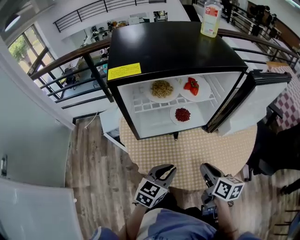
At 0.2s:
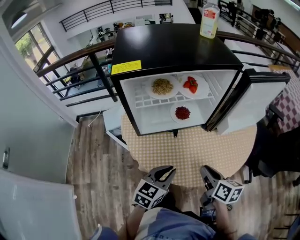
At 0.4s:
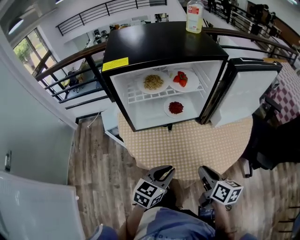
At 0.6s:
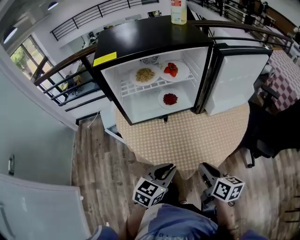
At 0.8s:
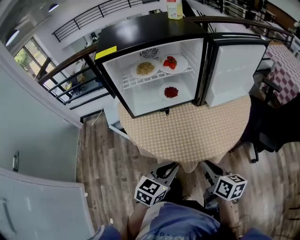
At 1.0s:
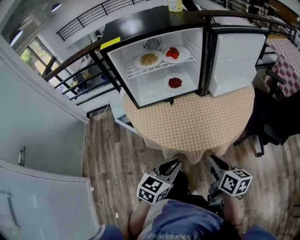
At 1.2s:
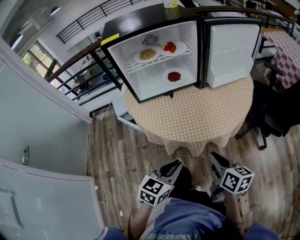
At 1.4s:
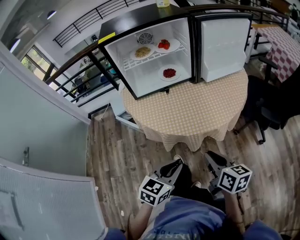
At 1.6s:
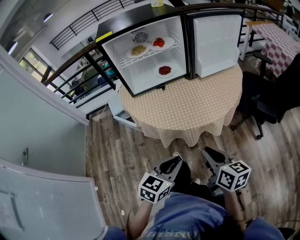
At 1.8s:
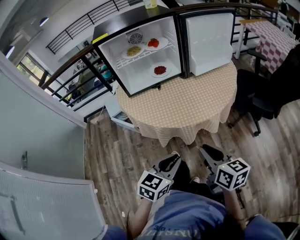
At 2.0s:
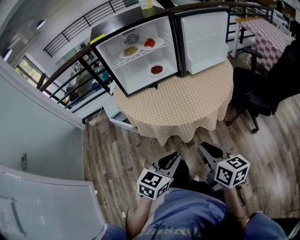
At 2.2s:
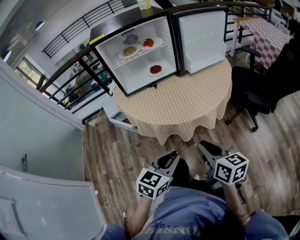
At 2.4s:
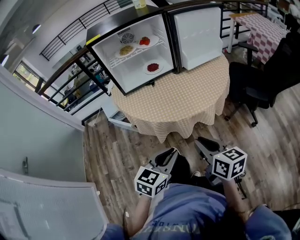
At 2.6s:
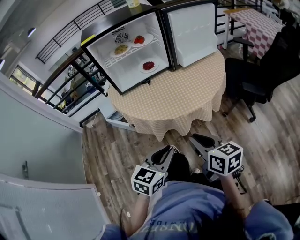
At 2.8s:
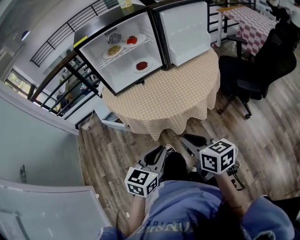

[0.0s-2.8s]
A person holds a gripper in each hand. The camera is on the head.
0.0s to 1.4s: Both grippers travel together backward, about 25 cm.
1.4s to 2.8s: The right gripper travels backward by approximately 5 cm, while the left gripper moves some 5 cm.

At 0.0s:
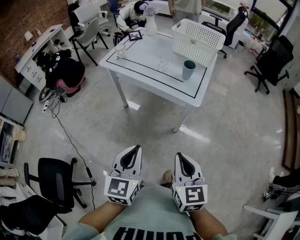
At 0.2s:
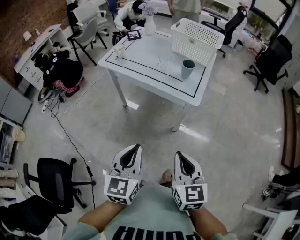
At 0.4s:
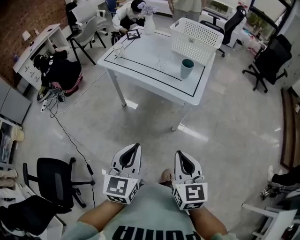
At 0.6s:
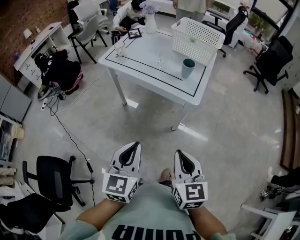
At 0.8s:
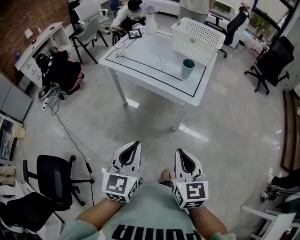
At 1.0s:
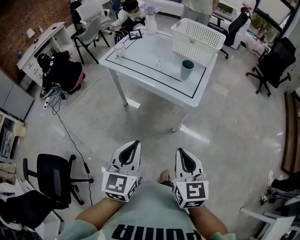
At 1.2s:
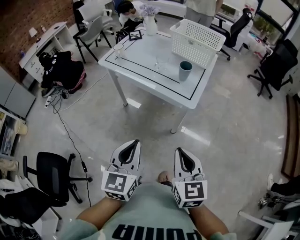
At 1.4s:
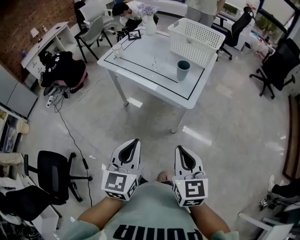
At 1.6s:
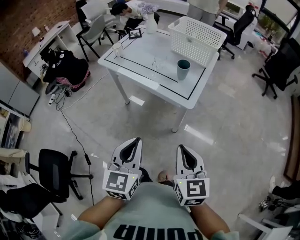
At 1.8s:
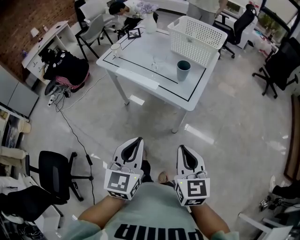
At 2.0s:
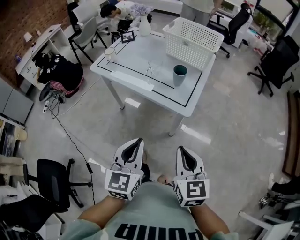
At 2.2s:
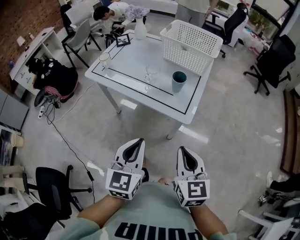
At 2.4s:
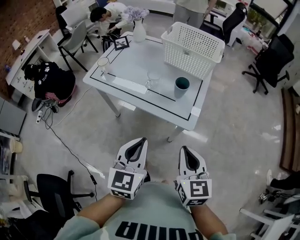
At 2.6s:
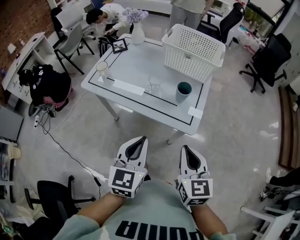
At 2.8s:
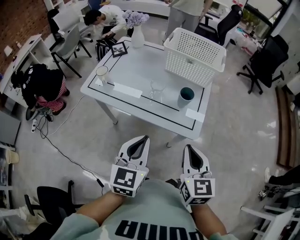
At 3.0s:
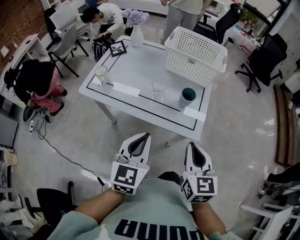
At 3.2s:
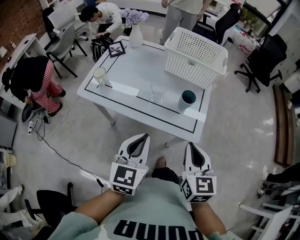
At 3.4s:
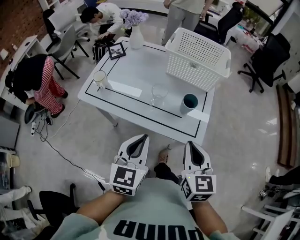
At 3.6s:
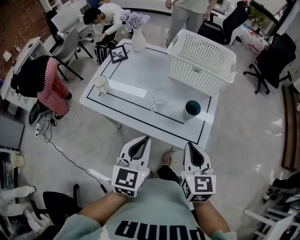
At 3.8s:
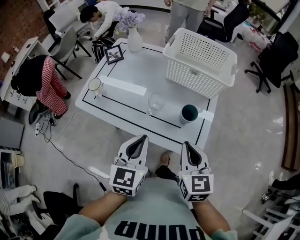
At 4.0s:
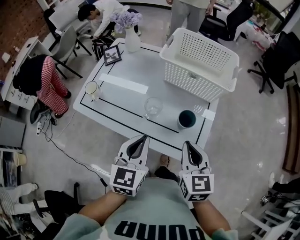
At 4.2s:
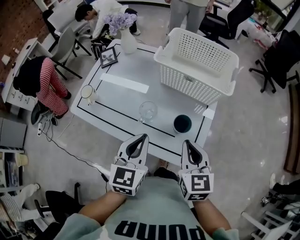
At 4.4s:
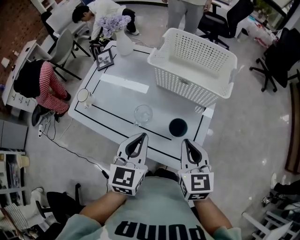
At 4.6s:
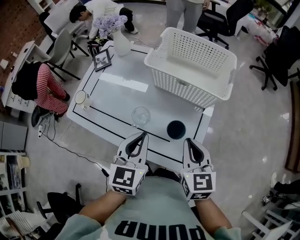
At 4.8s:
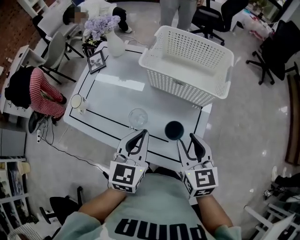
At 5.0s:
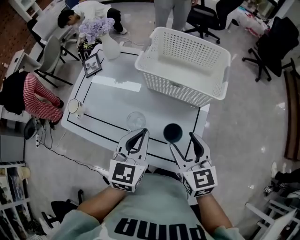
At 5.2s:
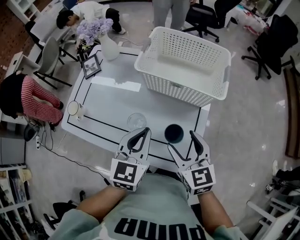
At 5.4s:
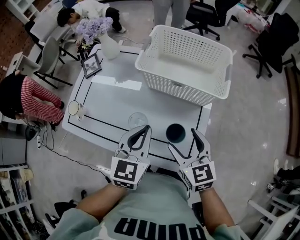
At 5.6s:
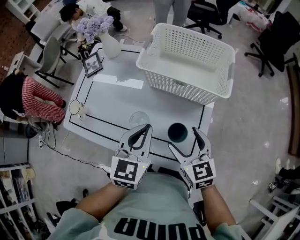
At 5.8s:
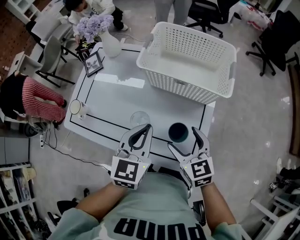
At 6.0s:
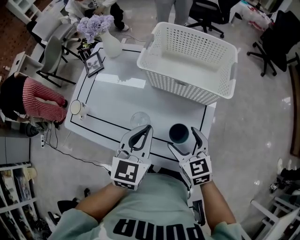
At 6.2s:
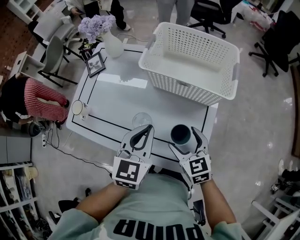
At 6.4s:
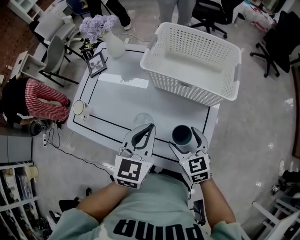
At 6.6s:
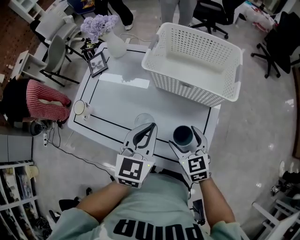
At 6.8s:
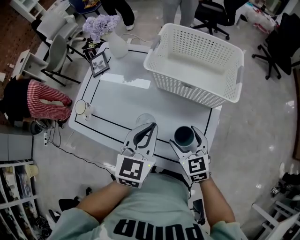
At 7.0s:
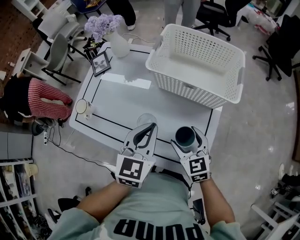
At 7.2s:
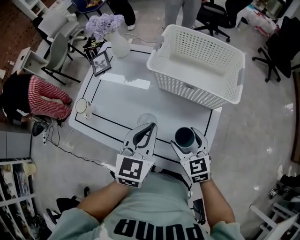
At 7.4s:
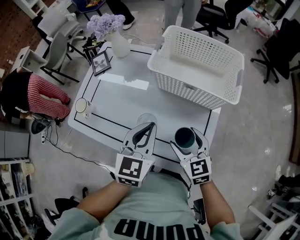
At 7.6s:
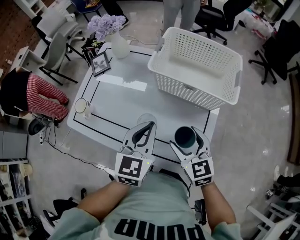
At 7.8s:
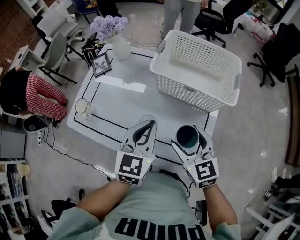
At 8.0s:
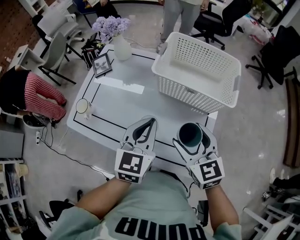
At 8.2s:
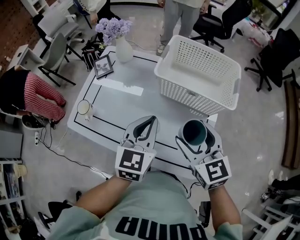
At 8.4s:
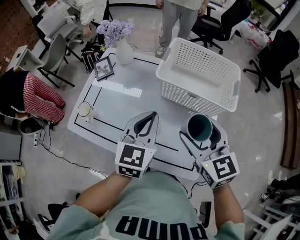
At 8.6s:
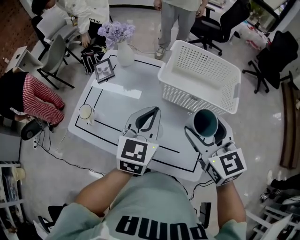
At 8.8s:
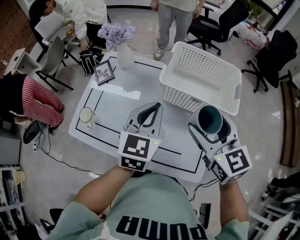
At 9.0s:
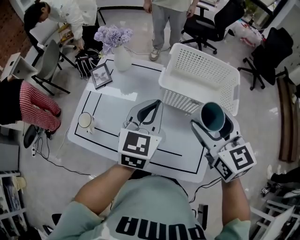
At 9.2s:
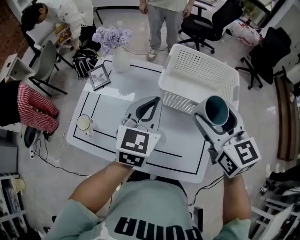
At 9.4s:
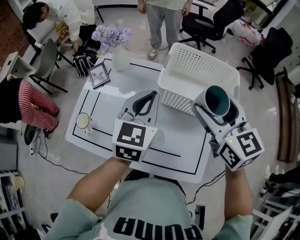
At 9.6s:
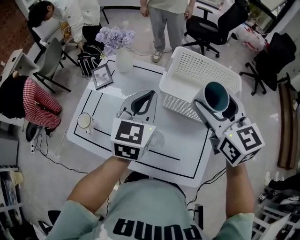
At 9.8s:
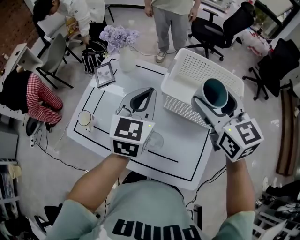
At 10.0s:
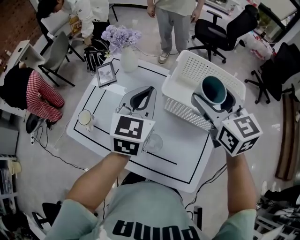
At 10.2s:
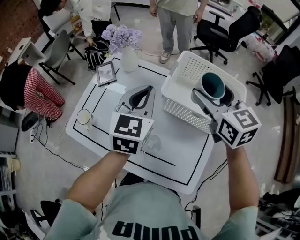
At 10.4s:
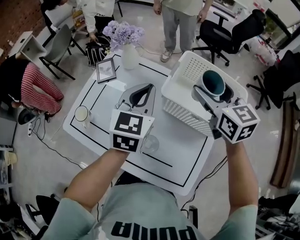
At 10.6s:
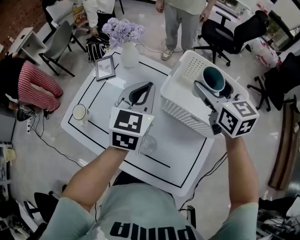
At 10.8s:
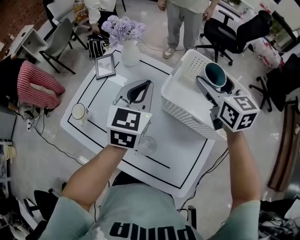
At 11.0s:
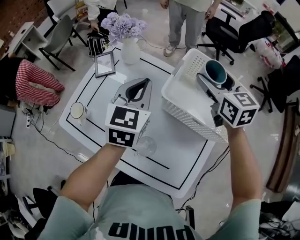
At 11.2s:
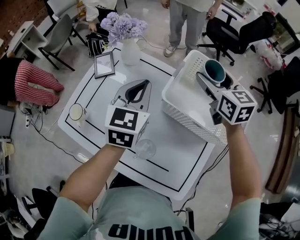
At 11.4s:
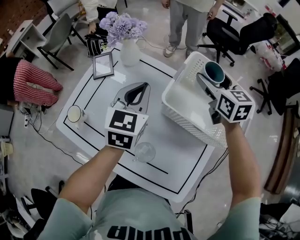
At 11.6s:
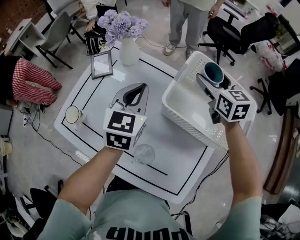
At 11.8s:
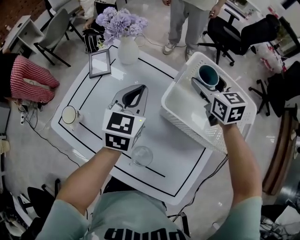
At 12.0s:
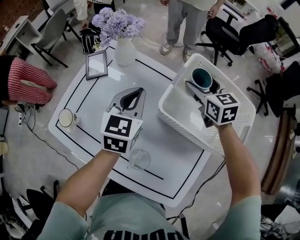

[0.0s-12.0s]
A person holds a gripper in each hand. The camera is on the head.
0.0s to 1.6s: The left gripper moves to the right, roughly 10 cm, while the right gripper heads to the right and forward, covering roughly 10 cm.
1.6s to 3.0s: Both grippers move forward, about 25 cm.
3.0s to 4.4s: The two grippers go some 20 cm forward.
4.4s to 6.0s: The left gripper heads forward, covering some 5 cm. Meanwhile the right gripper goes roughly 10 cm downward and forward, and opens.
6.0s to 7.6s: There are only small adjustments of the grippers.
7.6s to 9.0s: The right gripper travels upward and forward by some 20 cm, while the left gripper shifts roughly 15 cm forward and upward.
9.0s to 10.4s: The right gripper moves forward, roughly 15 cm. Meanwhile the left gripper shifts some 10 cm forward.
10.4s to 12.0s: The right gripper is displaced downward and forward by roughly 20 cm; the left gripper heads downward and forward, covering about 10 cm.

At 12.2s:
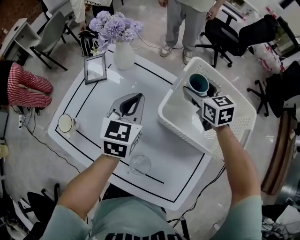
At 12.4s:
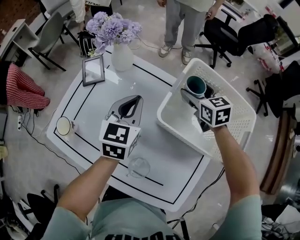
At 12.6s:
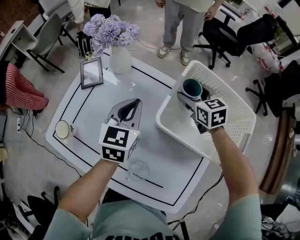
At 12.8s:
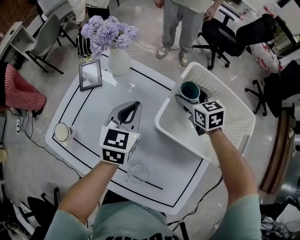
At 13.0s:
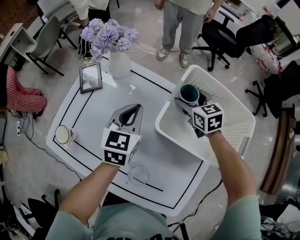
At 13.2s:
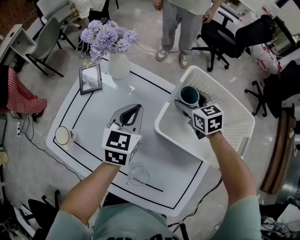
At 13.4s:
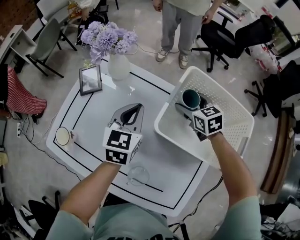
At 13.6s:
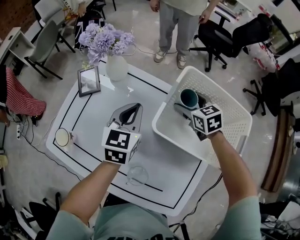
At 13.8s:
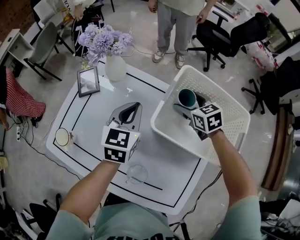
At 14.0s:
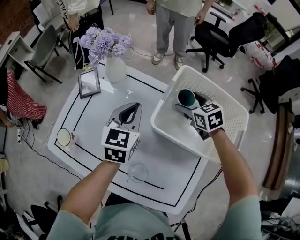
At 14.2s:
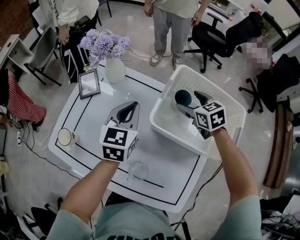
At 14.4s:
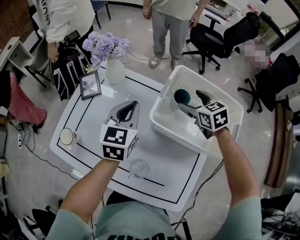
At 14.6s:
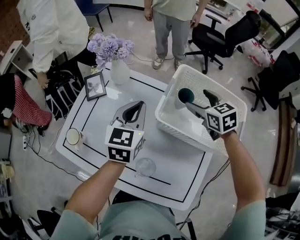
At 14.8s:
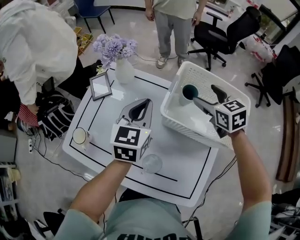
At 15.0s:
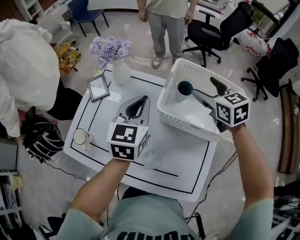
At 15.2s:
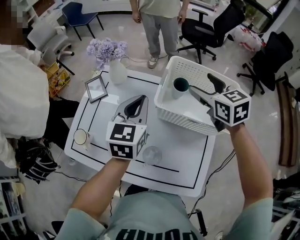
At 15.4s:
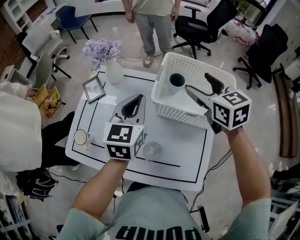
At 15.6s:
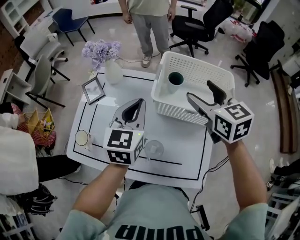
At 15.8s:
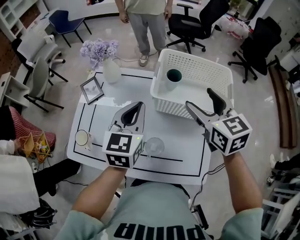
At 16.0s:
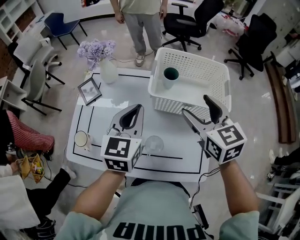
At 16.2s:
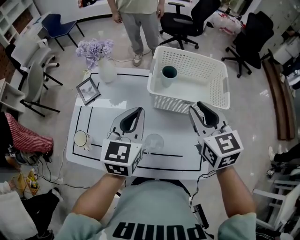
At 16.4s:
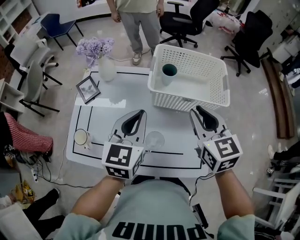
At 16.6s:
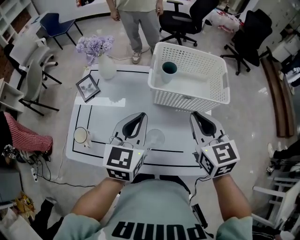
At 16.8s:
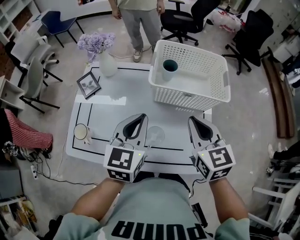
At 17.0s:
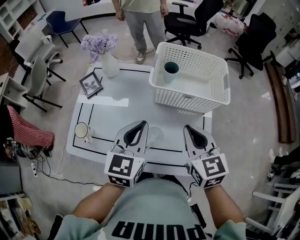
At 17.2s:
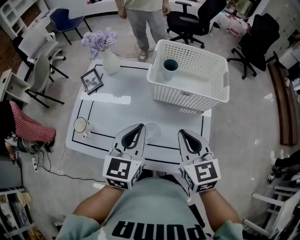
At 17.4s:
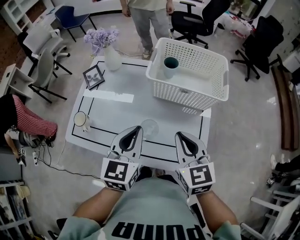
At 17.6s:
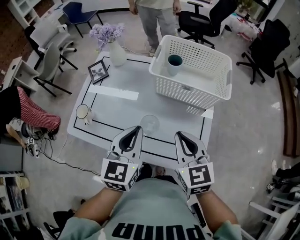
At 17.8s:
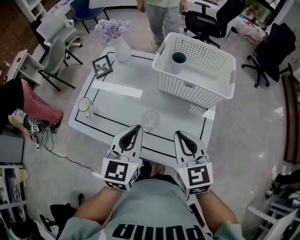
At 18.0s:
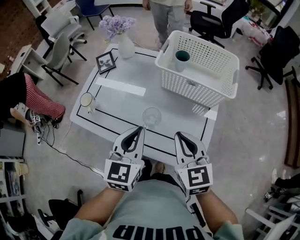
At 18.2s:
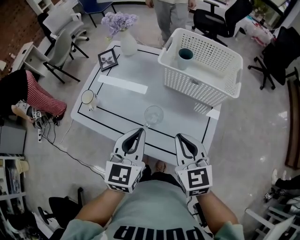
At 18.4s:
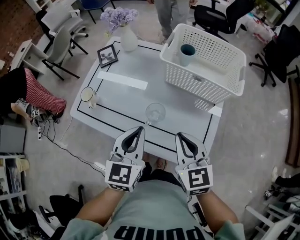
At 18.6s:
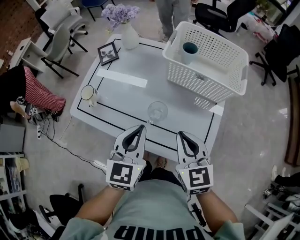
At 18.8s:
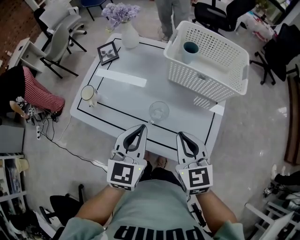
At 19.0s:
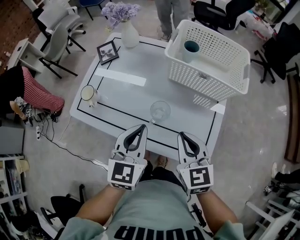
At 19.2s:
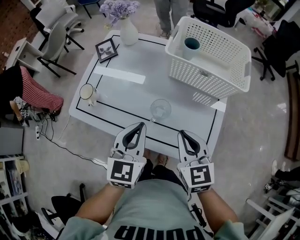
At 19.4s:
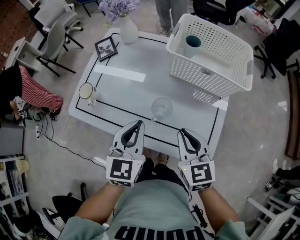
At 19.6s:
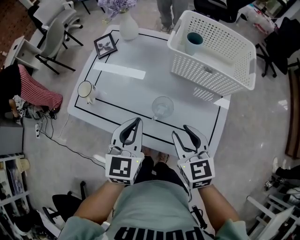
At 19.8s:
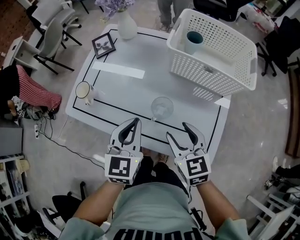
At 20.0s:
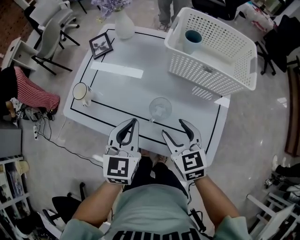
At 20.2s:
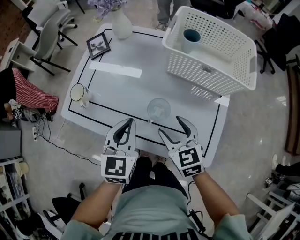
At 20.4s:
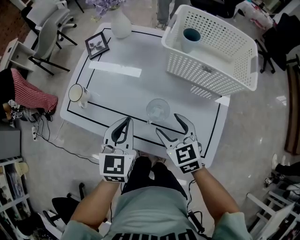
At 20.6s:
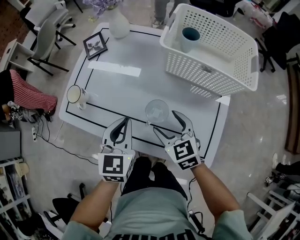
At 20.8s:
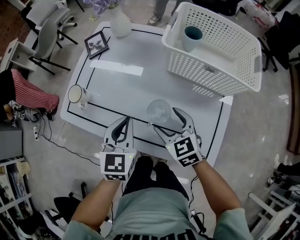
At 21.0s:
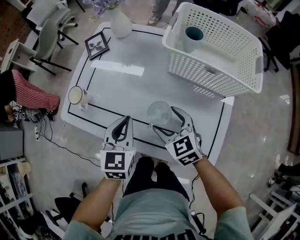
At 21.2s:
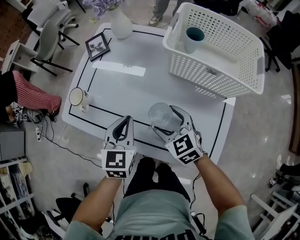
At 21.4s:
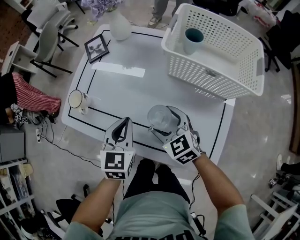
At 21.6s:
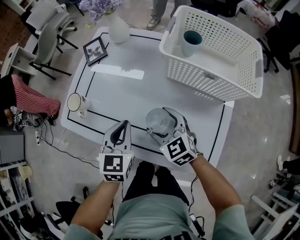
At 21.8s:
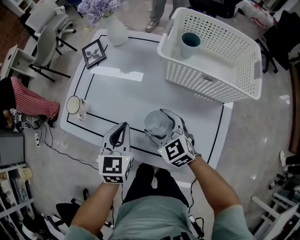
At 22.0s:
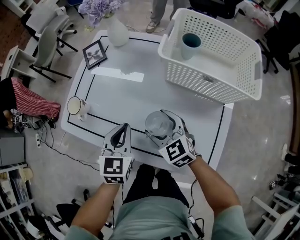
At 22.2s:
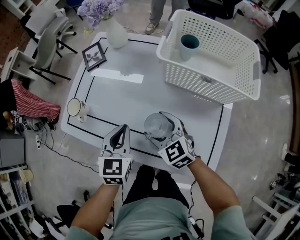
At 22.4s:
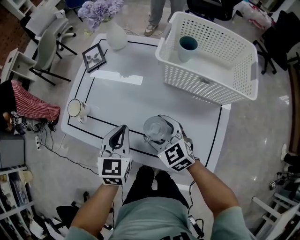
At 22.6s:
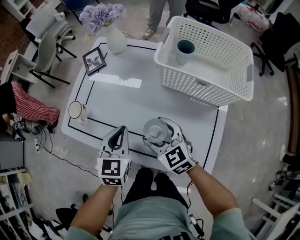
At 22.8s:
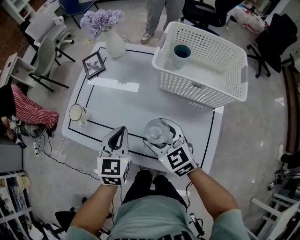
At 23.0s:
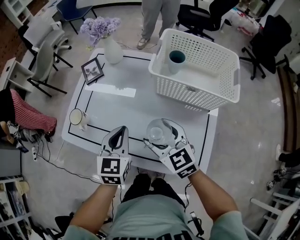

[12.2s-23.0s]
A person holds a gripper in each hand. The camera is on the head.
12.2s to 13.8s: The right gripper shifts by roughly 5 cm.
13.8s to 15.2s: The right gripper travels upward and backward by roughly 20 cm; the left gripper goes some 10 cm upward and backward.
15.2s to 16.8s: The right gripper shifts some 25 cm backward, and closes its fingers. Meanwhile the left gripper is displaced backward by roughly 15 cm.
16.8s to 18.4s: The left gripper moves backward, about 15 cm; the right gripper moves backward and downward, approximately 15 cm.
18.4s to 20.0s: The left gripper moves downward, about 5 cm, while the right gripper shifts roughly 10 cm downward, and opens.
20.0s to 21.4s: The left gripper heads downward, covering approximately 5 cm; the right gripper travels forward and downward by roughly 10 cm.
21.4s to 23.0s: The left gripper travels upward by approximately 5 cm. The right gripper goes some 10 cm upward.
